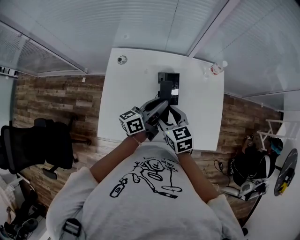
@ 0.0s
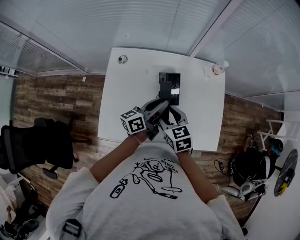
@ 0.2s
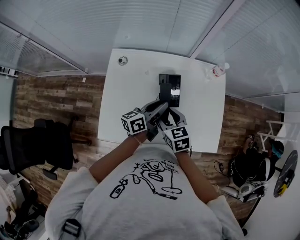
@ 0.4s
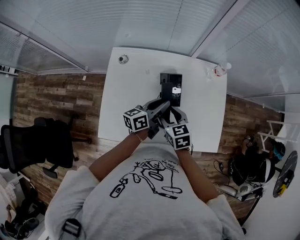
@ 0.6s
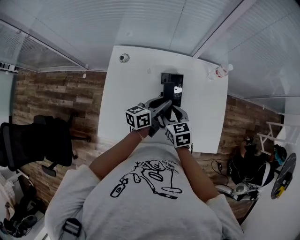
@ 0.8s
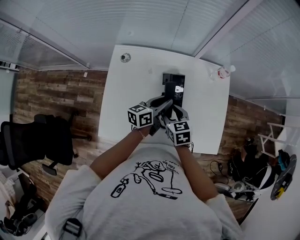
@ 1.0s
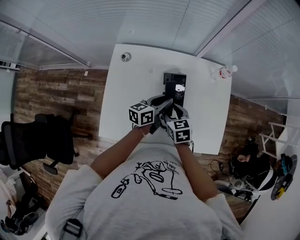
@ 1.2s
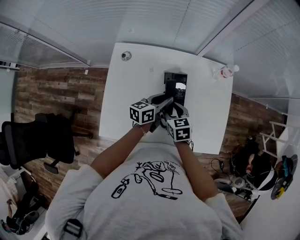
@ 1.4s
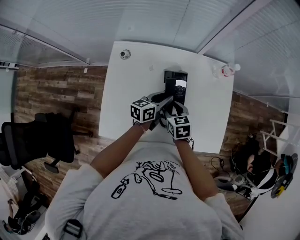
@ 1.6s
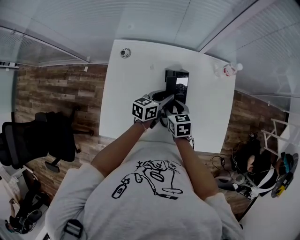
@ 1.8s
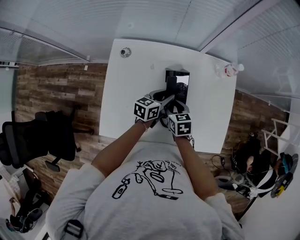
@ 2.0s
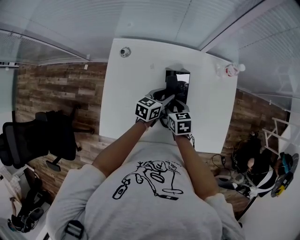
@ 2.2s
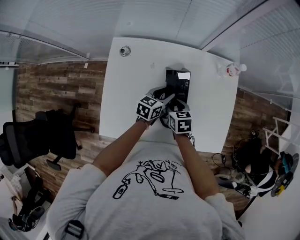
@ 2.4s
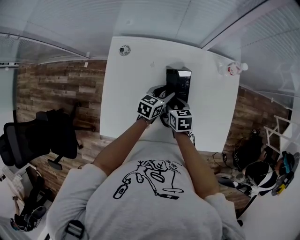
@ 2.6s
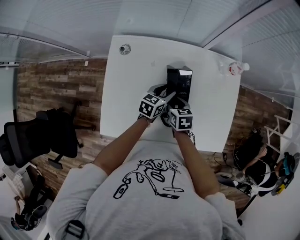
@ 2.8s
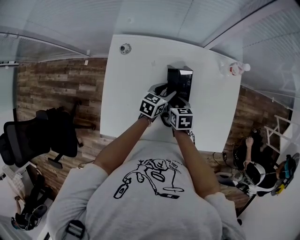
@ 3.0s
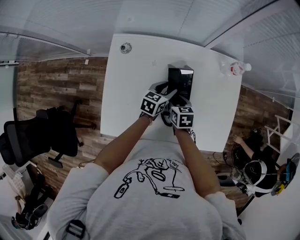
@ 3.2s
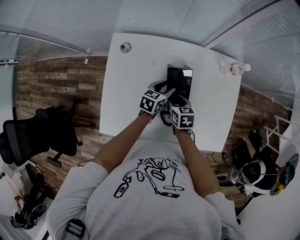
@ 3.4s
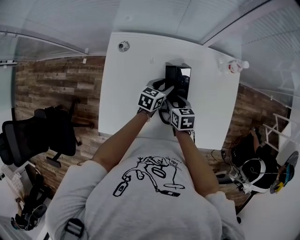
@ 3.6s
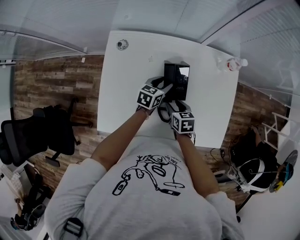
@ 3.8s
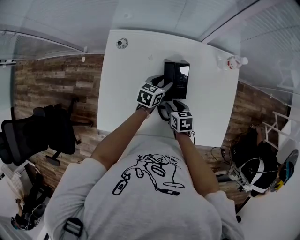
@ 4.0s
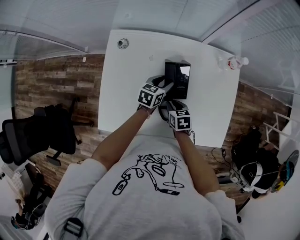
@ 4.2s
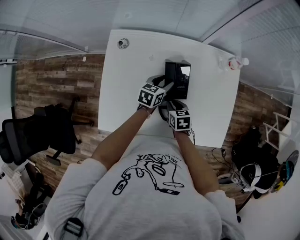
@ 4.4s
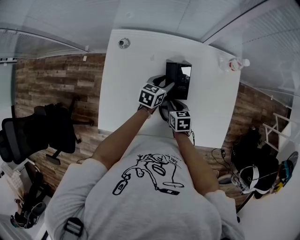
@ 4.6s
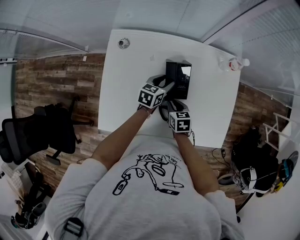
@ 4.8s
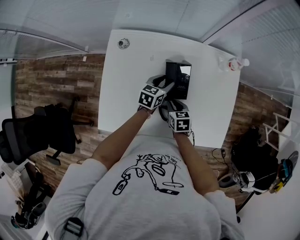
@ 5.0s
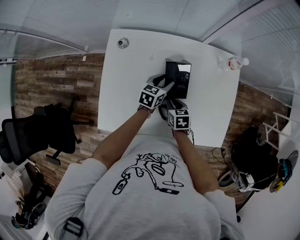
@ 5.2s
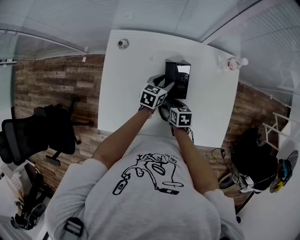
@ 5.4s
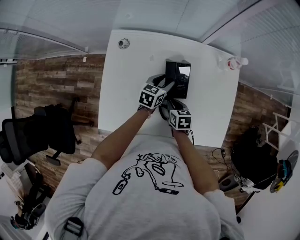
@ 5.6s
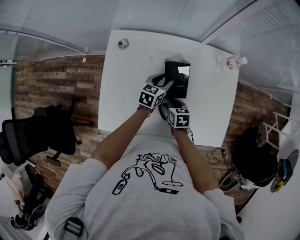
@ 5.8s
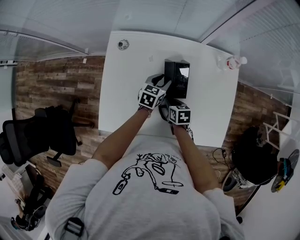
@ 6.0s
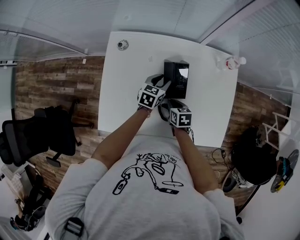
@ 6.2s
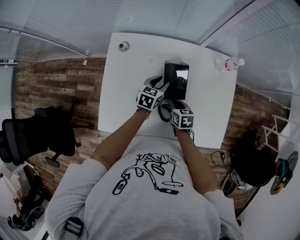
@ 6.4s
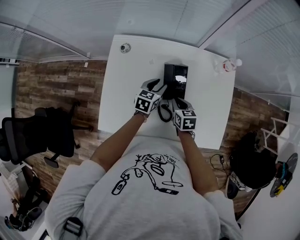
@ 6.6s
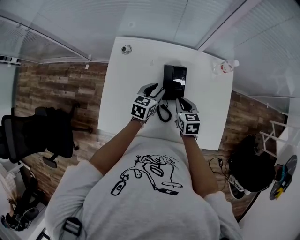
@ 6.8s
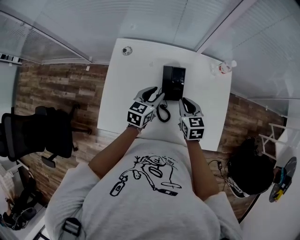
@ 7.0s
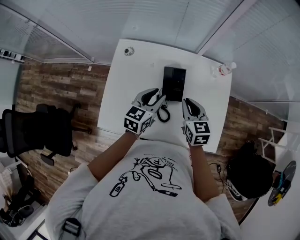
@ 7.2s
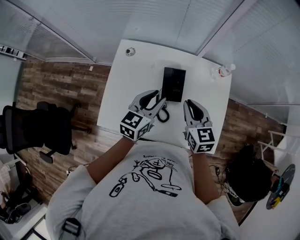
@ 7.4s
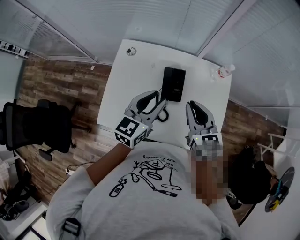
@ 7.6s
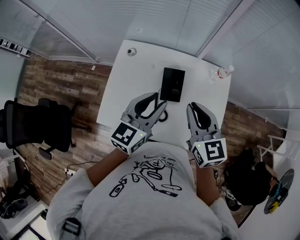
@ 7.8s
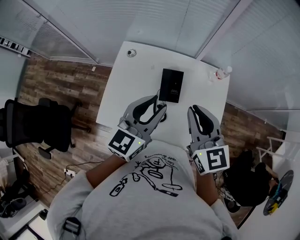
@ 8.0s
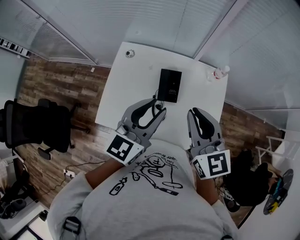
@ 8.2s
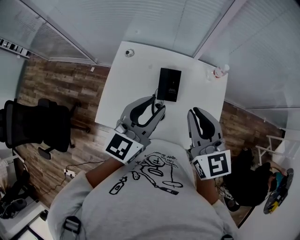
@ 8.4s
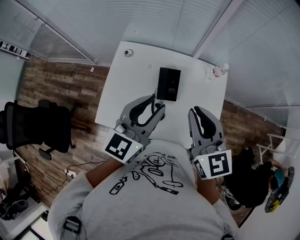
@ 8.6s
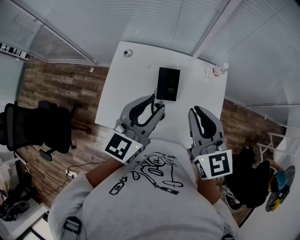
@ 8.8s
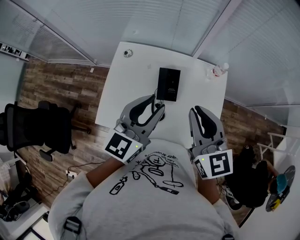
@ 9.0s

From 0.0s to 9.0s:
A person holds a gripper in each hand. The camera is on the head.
From 0.0s to 1.6s: The left gripper goes about 10 cm downward, and rotates about 20 degrees; the right gripper travels downward and forward by approximately 10 cm.
From 1.6s to 3.0s: The grippers both shift downward by approximately 5 cm. The left gripper turns by some 20 degrees.
From 3.0s to 4.4s: The right gripper shifts by about 5 cm, and closes its fingers.
From 4.4s to 6.0s: The grippers stay close to where they were, moving slightly.
From 6.0s to 7.6s: The left gripper travels upward and backward by about 30 cm, and turns by some 30 degrees. The right gripper travels upward by about 30 cm, and tilts its fingers roughly 30 degrees upward.
From 7.6s to 9.0s: The grippers both shift upward by some 10 cm.

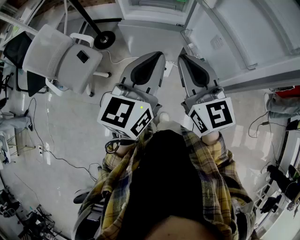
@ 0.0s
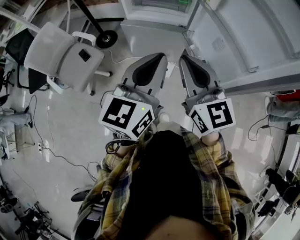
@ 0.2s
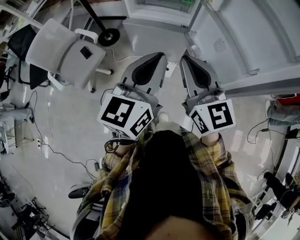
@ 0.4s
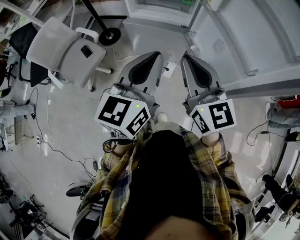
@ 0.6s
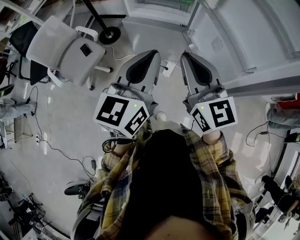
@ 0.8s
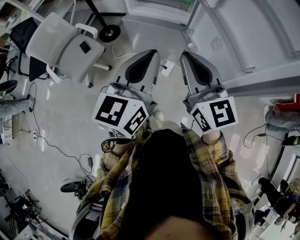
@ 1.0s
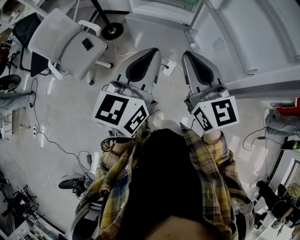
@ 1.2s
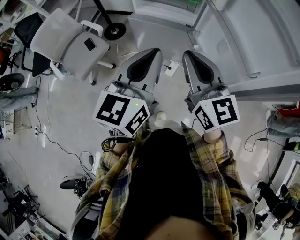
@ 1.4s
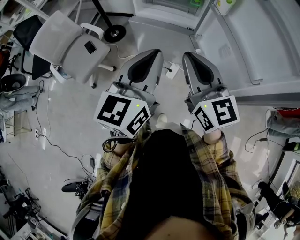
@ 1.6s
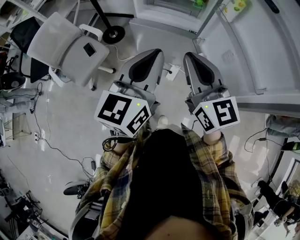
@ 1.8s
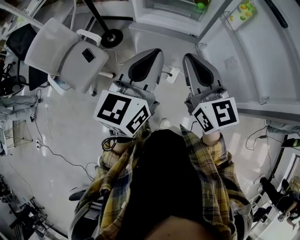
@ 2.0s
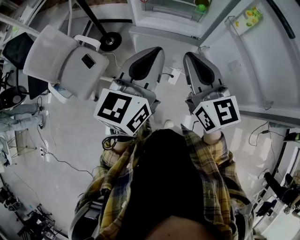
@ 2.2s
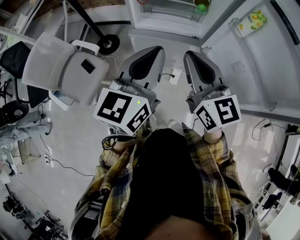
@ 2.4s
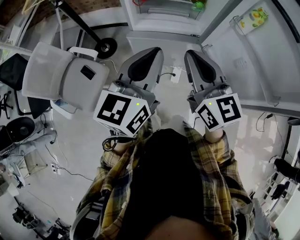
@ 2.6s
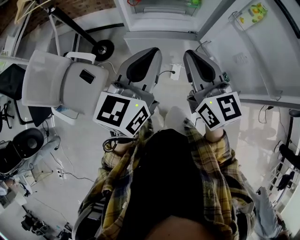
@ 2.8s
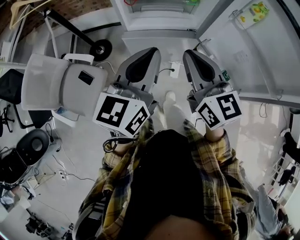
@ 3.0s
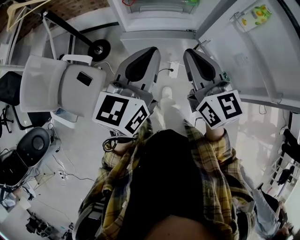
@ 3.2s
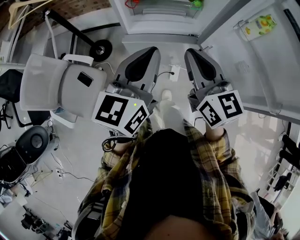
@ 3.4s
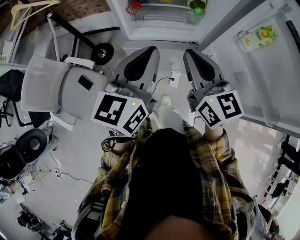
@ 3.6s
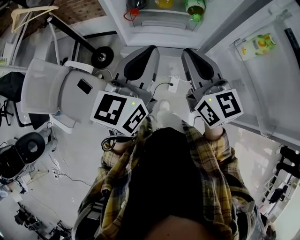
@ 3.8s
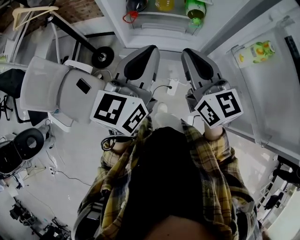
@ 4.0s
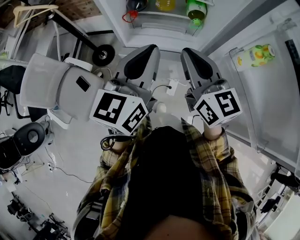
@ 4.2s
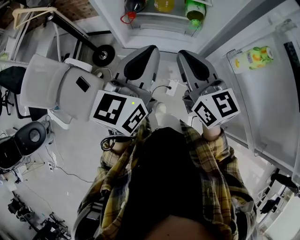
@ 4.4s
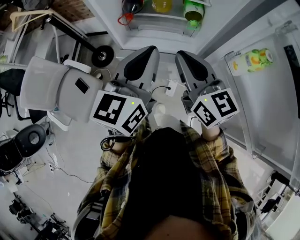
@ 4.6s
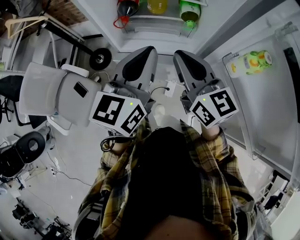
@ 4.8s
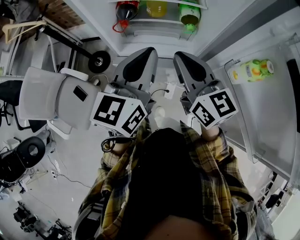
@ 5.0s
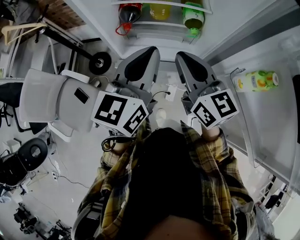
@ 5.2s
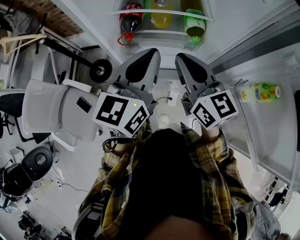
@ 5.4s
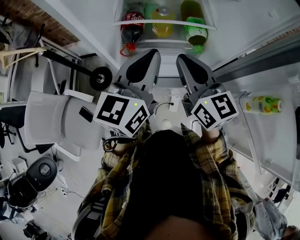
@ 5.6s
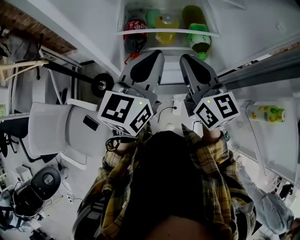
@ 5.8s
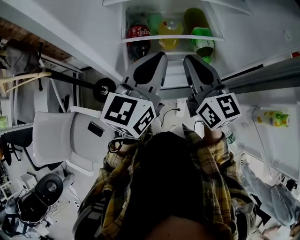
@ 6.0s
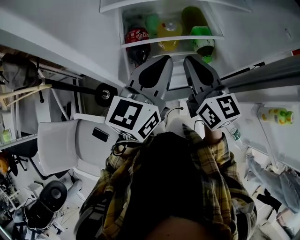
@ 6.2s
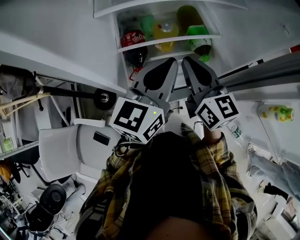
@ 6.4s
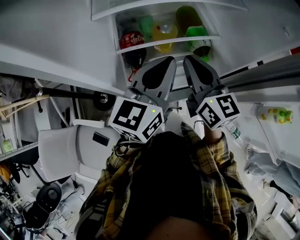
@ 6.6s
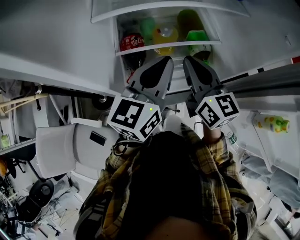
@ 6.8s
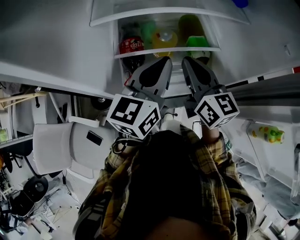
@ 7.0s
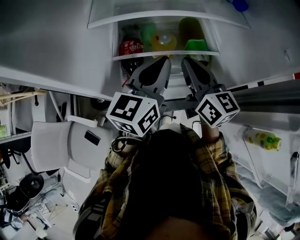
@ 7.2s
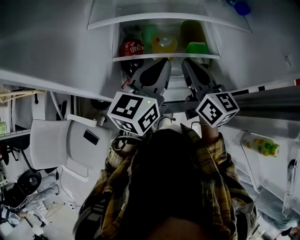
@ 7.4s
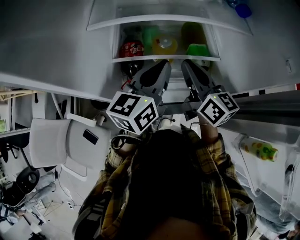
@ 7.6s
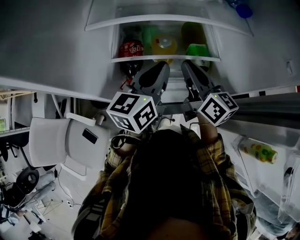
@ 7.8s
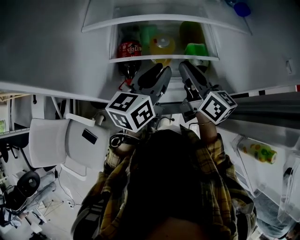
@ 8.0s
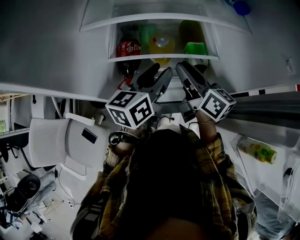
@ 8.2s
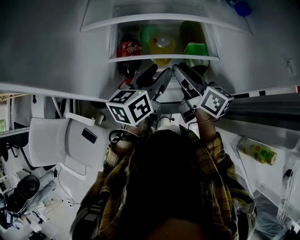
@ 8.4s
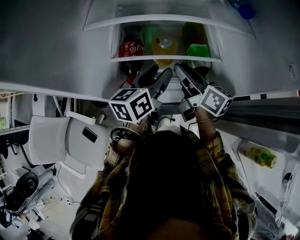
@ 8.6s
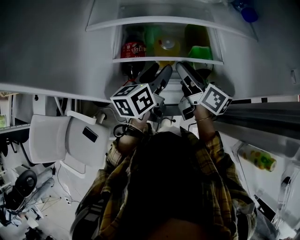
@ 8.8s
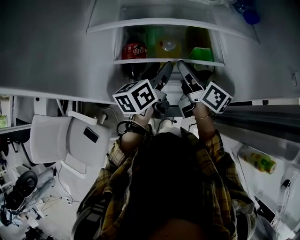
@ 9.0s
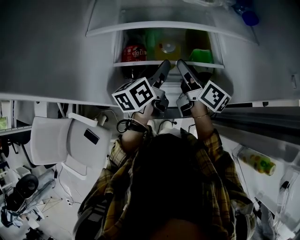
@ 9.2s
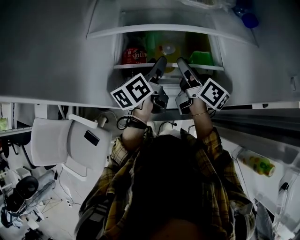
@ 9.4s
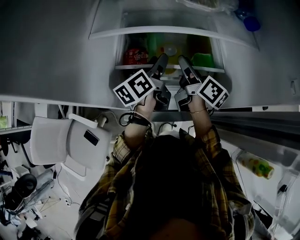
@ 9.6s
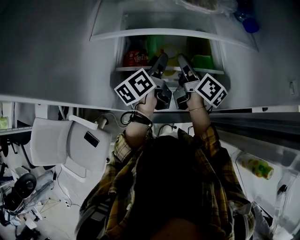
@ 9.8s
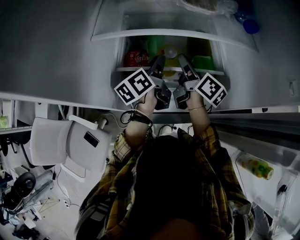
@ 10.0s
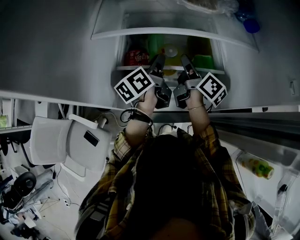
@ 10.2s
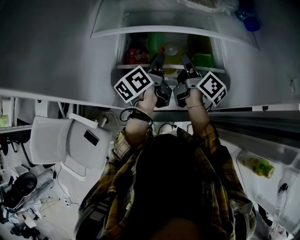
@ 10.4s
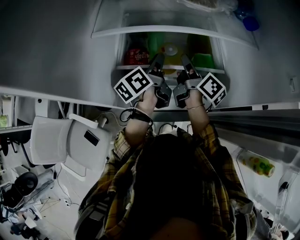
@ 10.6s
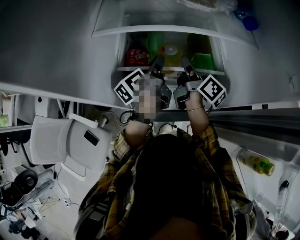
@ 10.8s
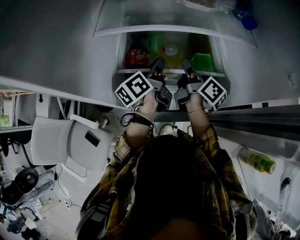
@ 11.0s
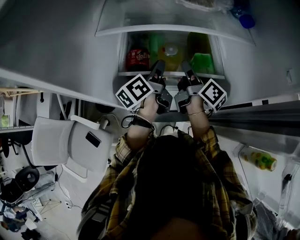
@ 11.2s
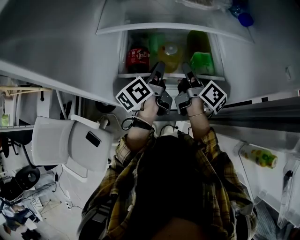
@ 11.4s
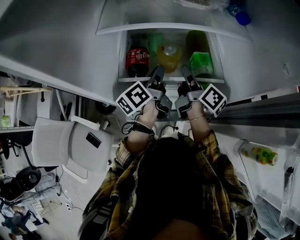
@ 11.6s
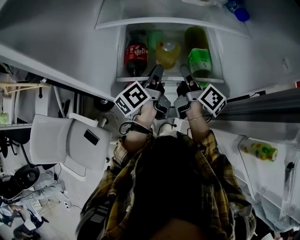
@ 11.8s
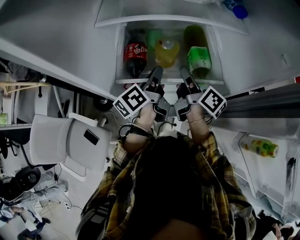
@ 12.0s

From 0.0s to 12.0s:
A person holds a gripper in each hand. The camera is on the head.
From 0.0s to 1.6s: There are only small adjustments of the grippers.
From 1.6s to 3.0s: The two grippers go some 20 cm forward and to the left. The right gripper changes its angle by about 20 degrees.
From 3.0s to 4.4s: Both grippers travel together forward and to the right, approximately 15 cm.
From 4.4s to 6.0s: The two grippers go approximately 20 cm forward.
From 6.0s to 7.6s: The grippers both shift forward by some 10 cm.
From 7.6s to 9.0s: The right gripper heads downward, covering approximately 5 cm, turns by some 30 degrees, and opens. Meanwhile the left gripper travels downward and forward by about 10 cm, changes its angle by about 20 degrees, and opens.
From 9.0s to 10.4s: The two grippers go approximately 5 cm forward. The right gripper closes up. The left gripper closes up.
From 10.4s to 12.0s: Both grippers travel together backward, approximately 10 cm.

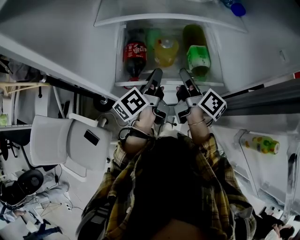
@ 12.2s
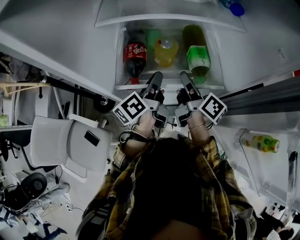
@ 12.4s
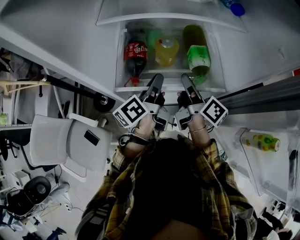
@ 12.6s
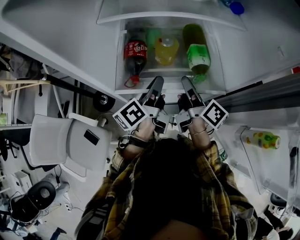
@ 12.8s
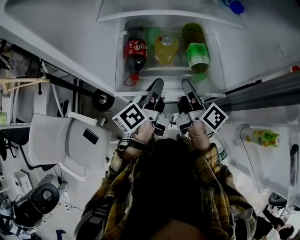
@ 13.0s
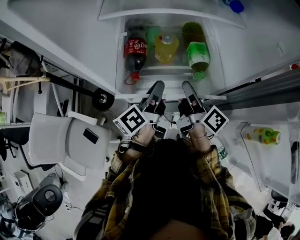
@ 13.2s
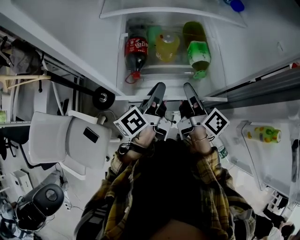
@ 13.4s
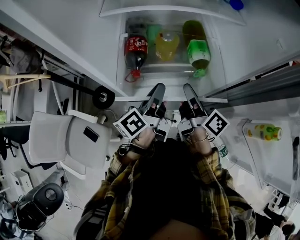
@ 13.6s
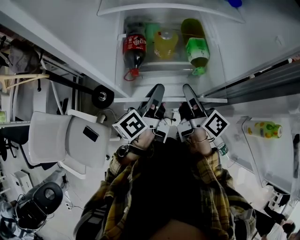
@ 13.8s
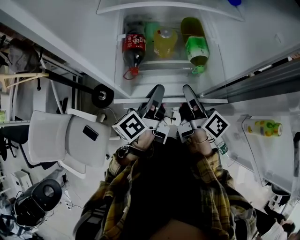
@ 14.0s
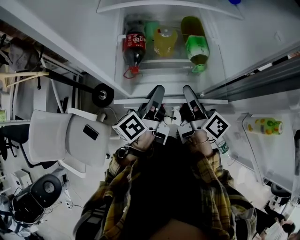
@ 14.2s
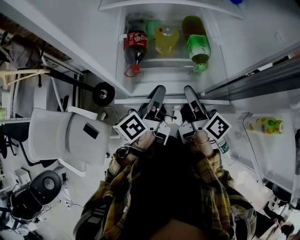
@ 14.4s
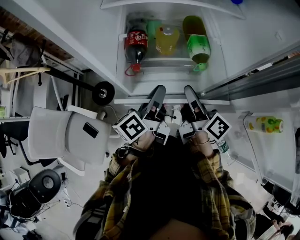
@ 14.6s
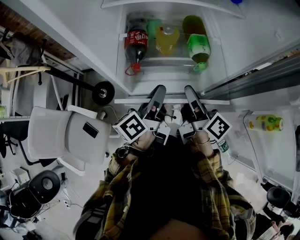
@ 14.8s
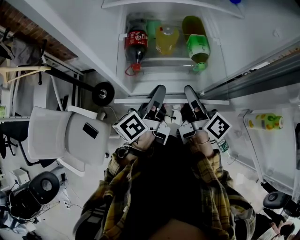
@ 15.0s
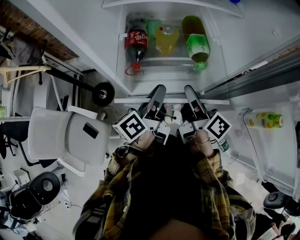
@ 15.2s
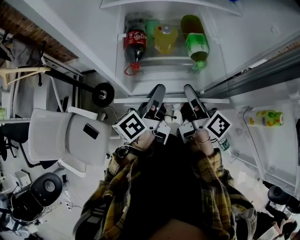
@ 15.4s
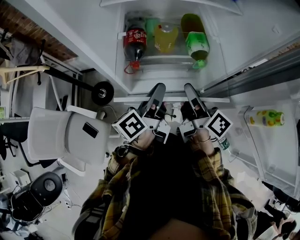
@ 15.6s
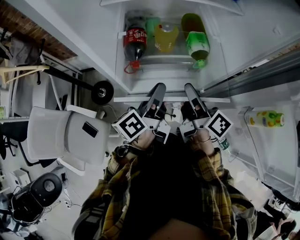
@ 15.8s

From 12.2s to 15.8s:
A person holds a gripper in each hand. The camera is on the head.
From 12.2s to 14.0s: The two grippers go approximately 10 cm backward.
From 14.0s to 15.8s: The grippers move only a little.
